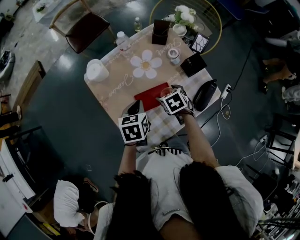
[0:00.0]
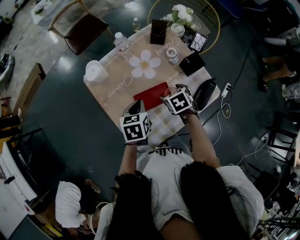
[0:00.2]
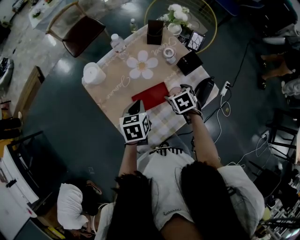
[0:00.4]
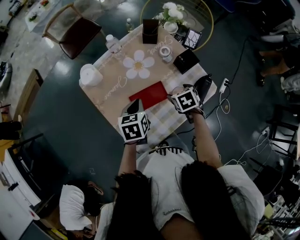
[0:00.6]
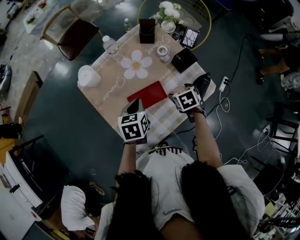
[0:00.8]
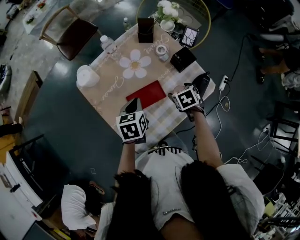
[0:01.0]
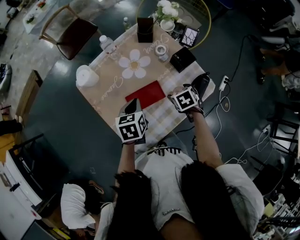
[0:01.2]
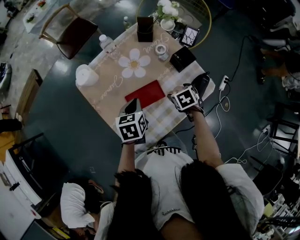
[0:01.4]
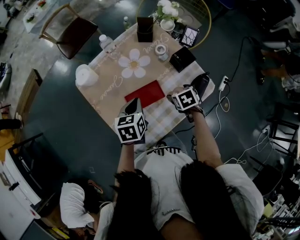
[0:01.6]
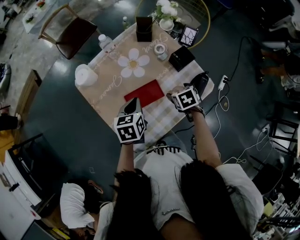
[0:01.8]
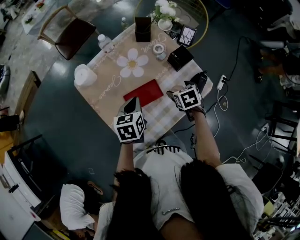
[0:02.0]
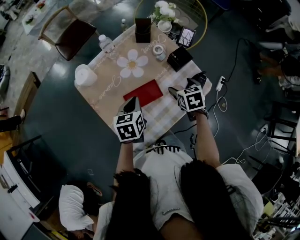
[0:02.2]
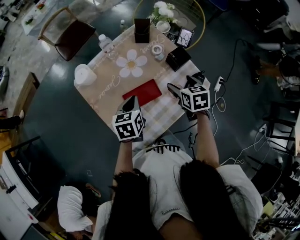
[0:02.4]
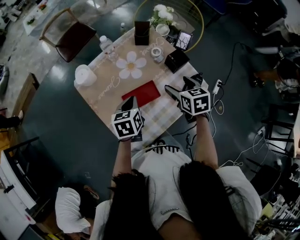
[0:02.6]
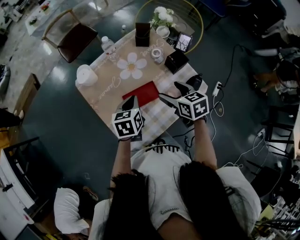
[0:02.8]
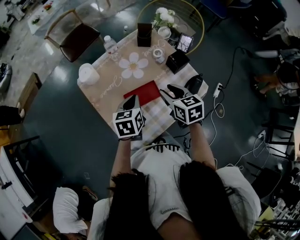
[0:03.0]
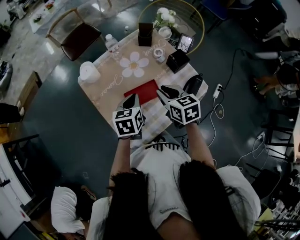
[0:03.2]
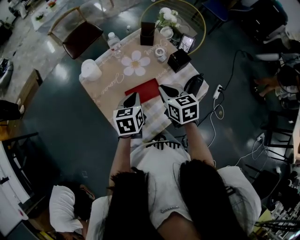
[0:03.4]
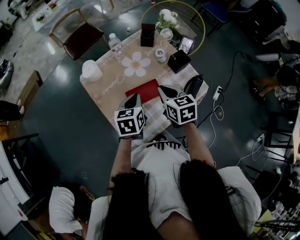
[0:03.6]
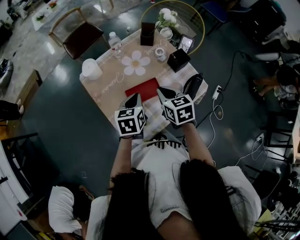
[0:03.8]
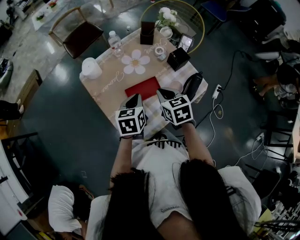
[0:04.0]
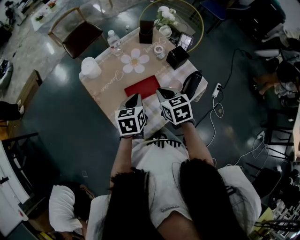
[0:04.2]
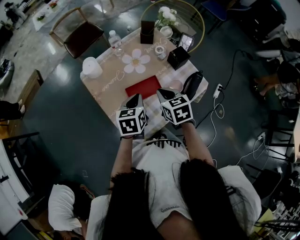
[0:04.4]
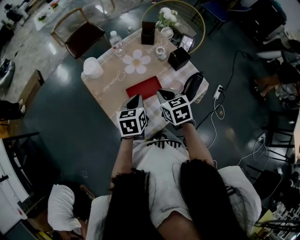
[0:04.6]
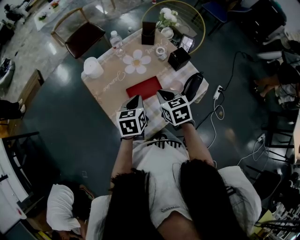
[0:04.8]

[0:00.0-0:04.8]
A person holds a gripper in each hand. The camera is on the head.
0:00.0 to 0:01.6: The right gripper heads to the right, covering roughly 10 cm.
0:01.6 to 0:03.2: The right gripper goes some 20 cm upward and to the left, points its fingers roughly 30 degrees further upward, and closes up.
0:03.2 to 0:04.8: The grippers move only a little.

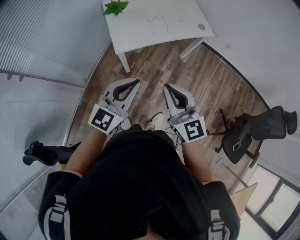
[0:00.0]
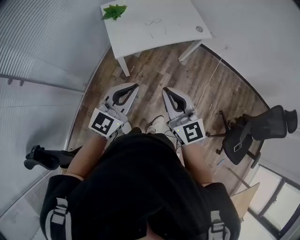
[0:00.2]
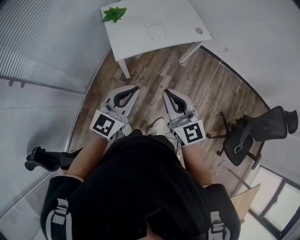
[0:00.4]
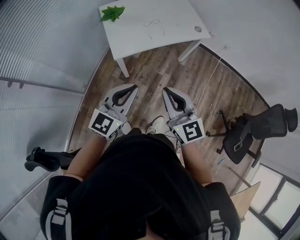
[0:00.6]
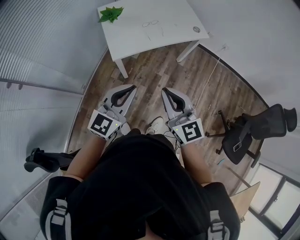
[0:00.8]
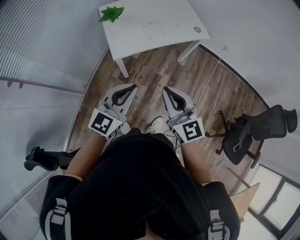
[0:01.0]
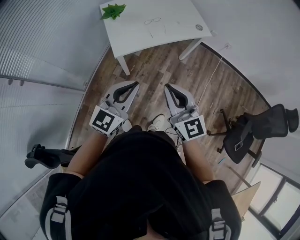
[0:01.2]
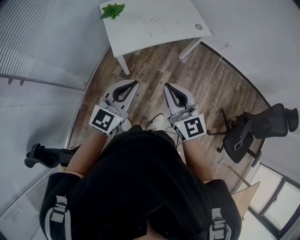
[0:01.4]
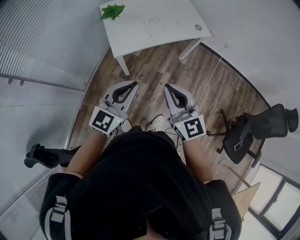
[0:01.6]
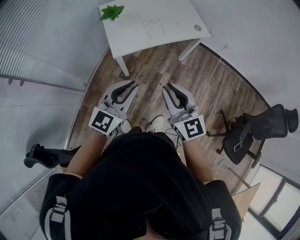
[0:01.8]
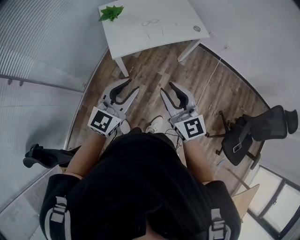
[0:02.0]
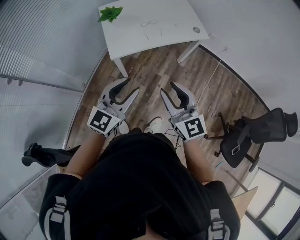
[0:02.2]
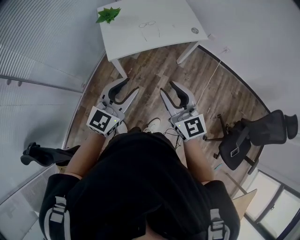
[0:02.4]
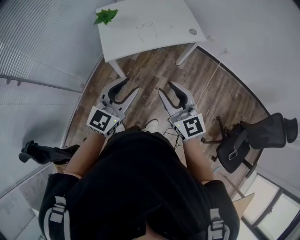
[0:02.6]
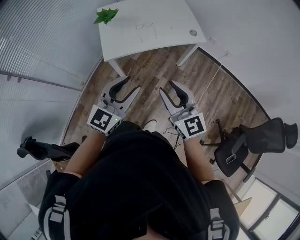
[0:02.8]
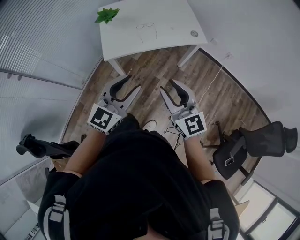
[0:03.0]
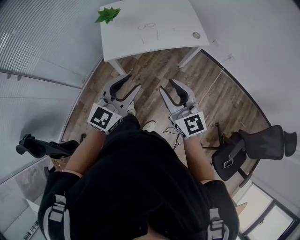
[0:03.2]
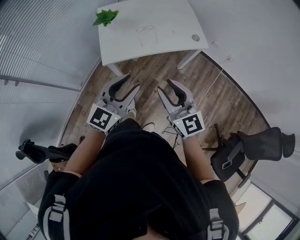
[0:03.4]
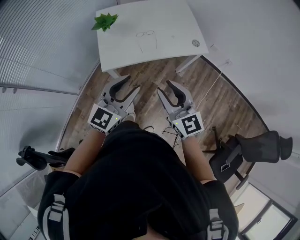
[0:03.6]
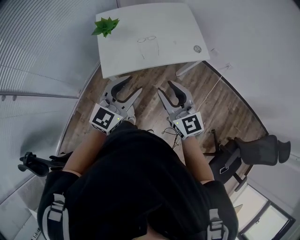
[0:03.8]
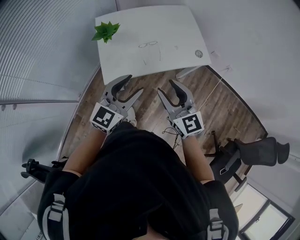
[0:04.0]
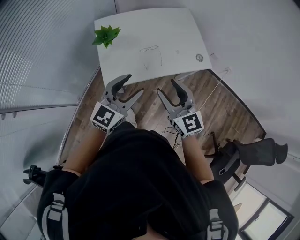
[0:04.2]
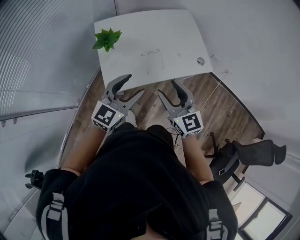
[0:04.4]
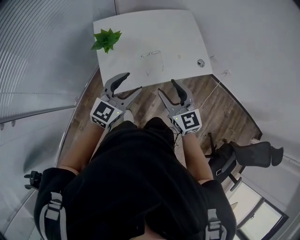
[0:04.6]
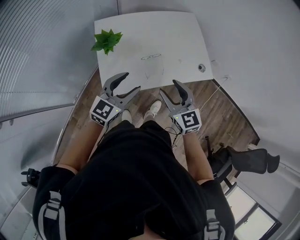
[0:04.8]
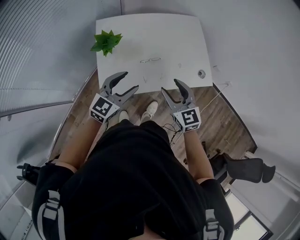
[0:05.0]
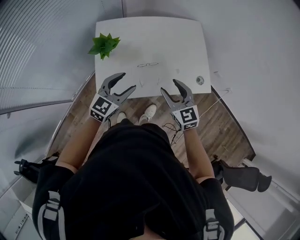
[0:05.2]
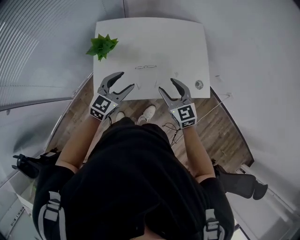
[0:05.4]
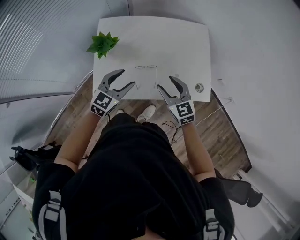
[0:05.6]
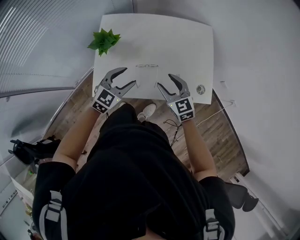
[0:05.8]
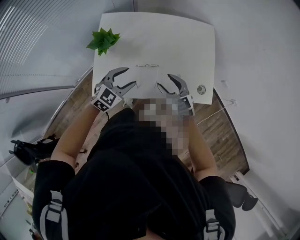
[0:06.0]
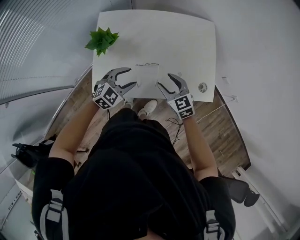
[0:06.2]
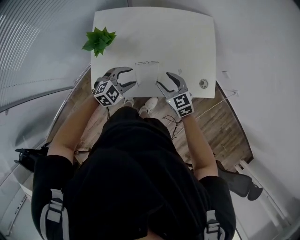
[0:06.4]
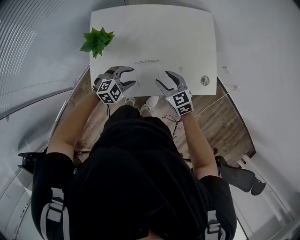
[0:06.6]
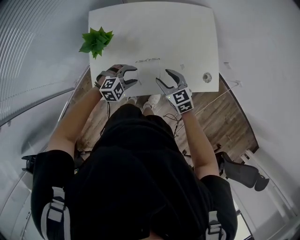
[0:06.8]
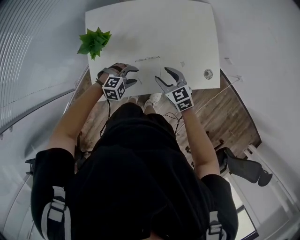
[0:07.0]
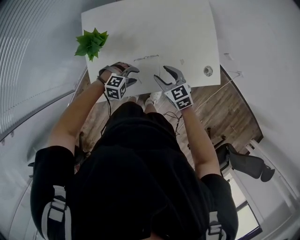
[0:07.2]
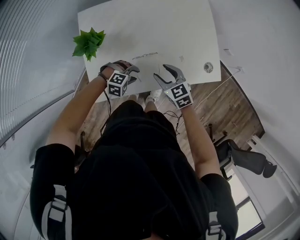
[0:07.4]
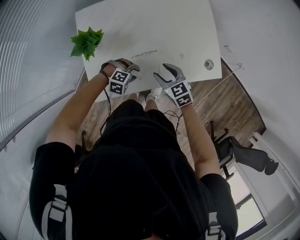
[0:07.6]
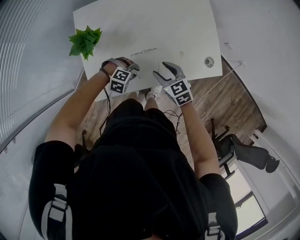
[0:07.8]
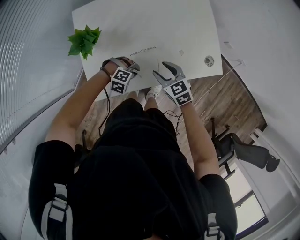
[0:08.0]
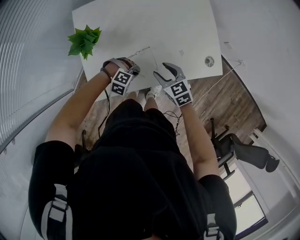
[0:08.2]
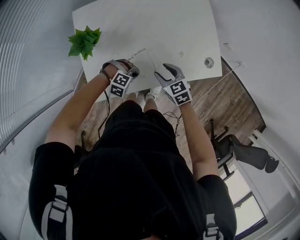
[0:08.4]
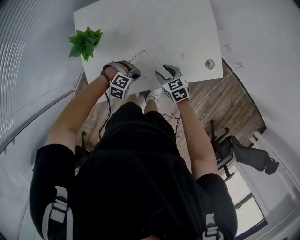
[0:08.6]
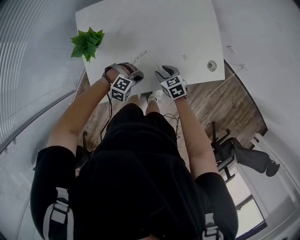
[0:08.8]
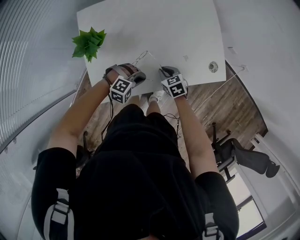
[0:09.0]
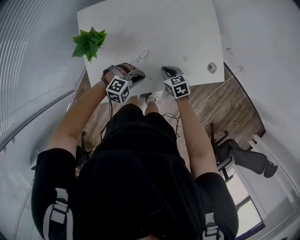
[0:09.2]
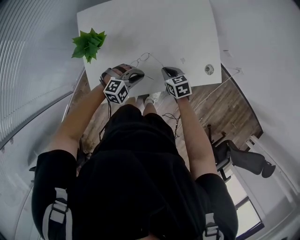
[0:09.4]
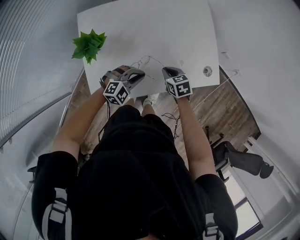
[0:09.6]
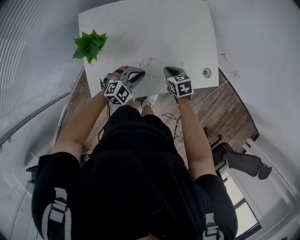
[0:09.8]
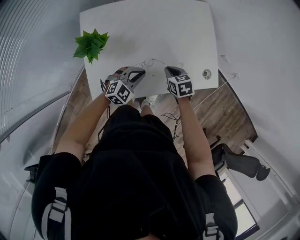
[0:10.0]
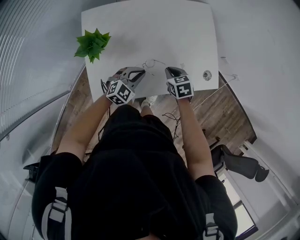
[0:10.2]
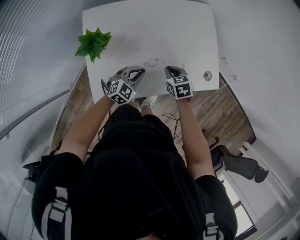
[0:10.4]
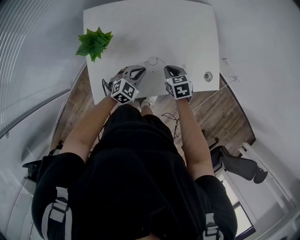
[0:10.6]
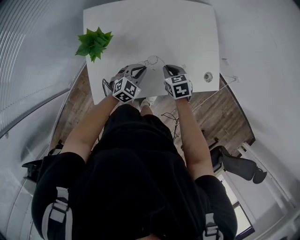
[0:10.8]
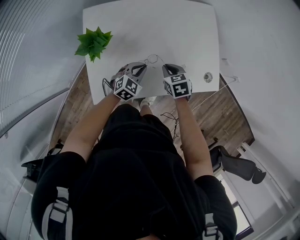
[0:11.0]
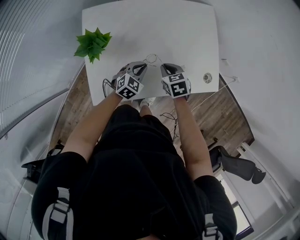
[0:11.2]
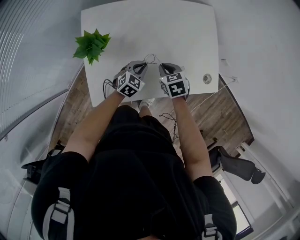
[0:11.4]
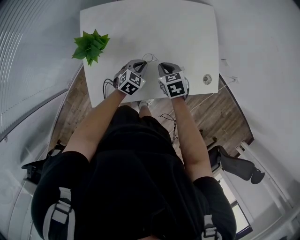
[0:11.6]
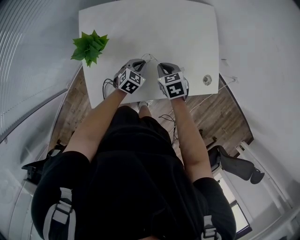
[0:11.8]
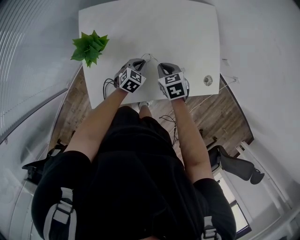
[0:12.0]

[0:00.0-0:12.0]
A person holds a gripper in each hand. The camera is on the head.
0:00.0 to 0:01.6: The grippers make only small movements.
0:01.6 to 0:03.0: The right gripper goes approximately 15 cm to the right and forward, and opens its fingers; the left gripper shifts about 10 cm to the right, and opens.
0:03.0 to 0:04.4: The two grippers go about 25 cm forward. The right gripper opens. The left gripper opens its fingers.
0:04.4 to 0:06.0: The grippers both shift forward and downward by about 25 cm. The left gripper turns by roughly 30 degrees. The right gripper turns by roughly 30 degrees.
0:06.0 to 0:07.6: The right gripper goes roughly 10 cm downward; the left gripper travels downward by about 20 cm, points its fingers approximately 30 degrees further downward, and closes its fingers.
0:07.6 to 0:09.0: The right gripper heads downward, covering about 10 cm, and closes, while the left gripper closes up.
0:09.0 to 0:10.4: The right gripper moves upward, about 10 cm, while the left gripper moves approximately 10 cm, and rolls counterclockwise, seen from behind, by some 40 degrees.
0:10.4 to 0:12.0: The left gripper is displaced downward and forward by about 10 cm, and turns by approximately 20 degrees, while the right gripper changes place by about 5 cm.

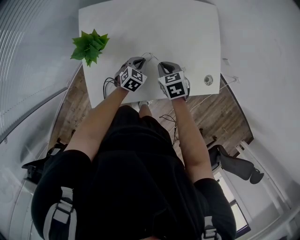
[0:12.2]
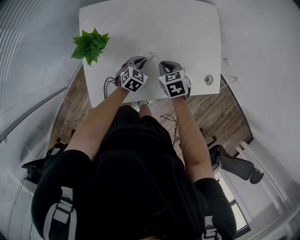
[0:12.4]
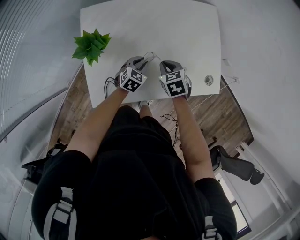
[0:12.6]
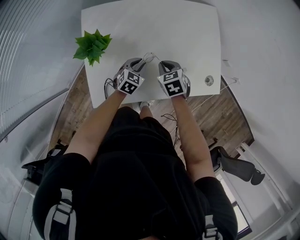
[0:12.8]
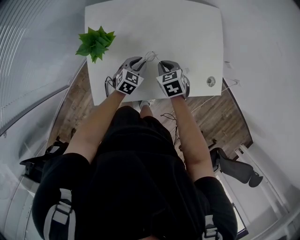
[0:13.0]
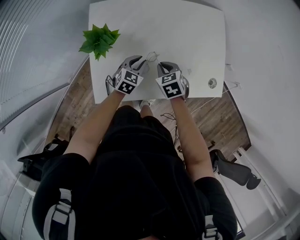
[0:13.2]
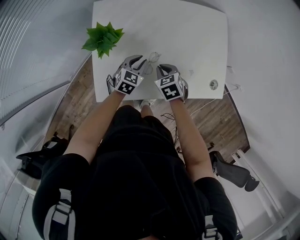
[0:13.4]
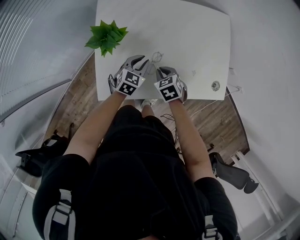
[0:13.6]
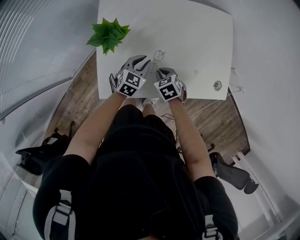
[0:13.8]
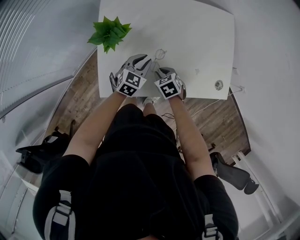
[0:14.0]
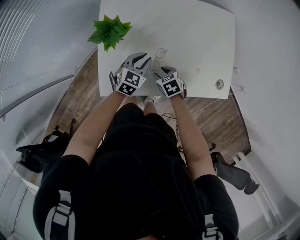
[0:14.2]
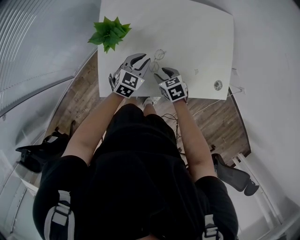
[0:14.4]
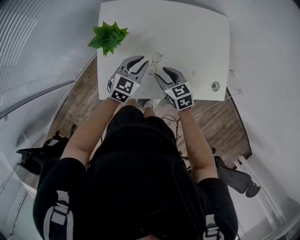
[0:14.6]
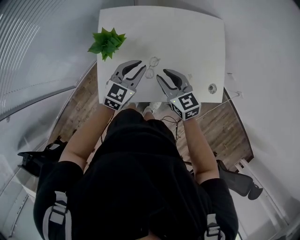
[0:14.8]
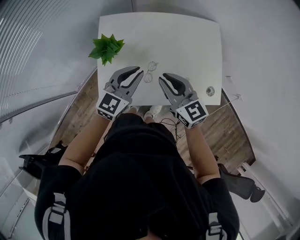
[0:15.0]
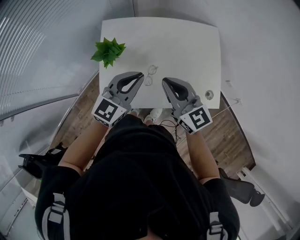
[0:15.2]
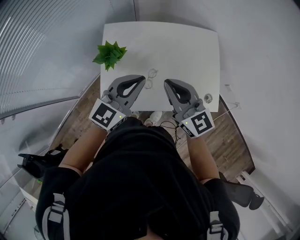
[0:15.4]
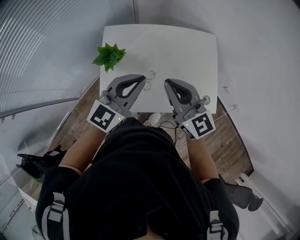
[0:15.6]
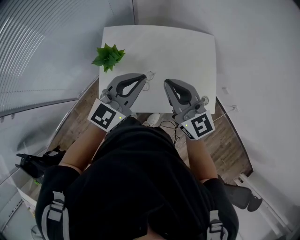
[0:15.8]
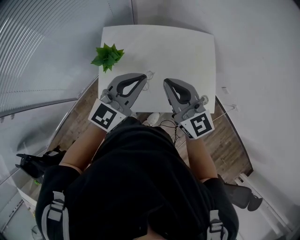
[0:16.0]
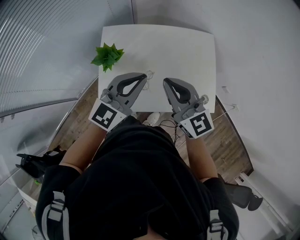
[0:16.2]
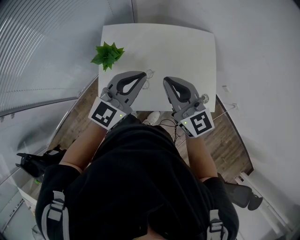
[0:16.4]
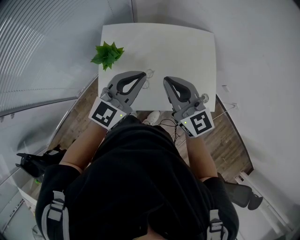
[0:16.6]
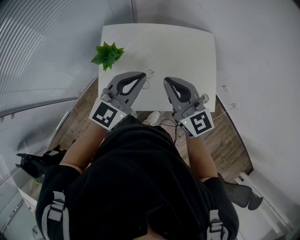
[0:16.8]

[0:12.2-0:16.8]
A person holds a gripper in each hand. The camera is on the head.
0:12.2 to 0:13.8: The right gripper travels to the left, backward and downward by roughly 10 cm, while the left gripper is displaced to the left and upward by about 10 cm.
0:13.8 to 0:15.2: Both grippers travel together upward, roughly 30 cm. The left gripper swivels some 30 degrees. The right gripper angles its fingers upward, by some 60 degrees, and opens, then closes once more.
0:15.2 to 0:16.8: The grippers both shift upward by roughly 5 cm.

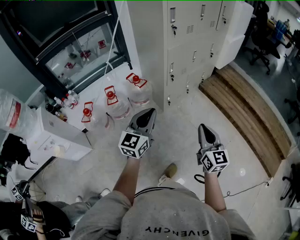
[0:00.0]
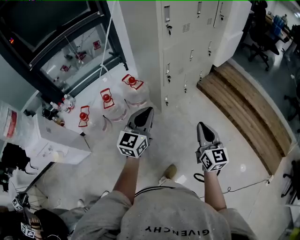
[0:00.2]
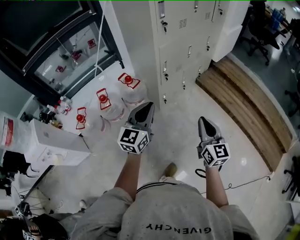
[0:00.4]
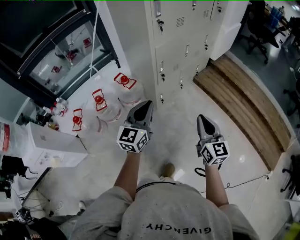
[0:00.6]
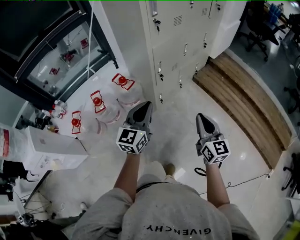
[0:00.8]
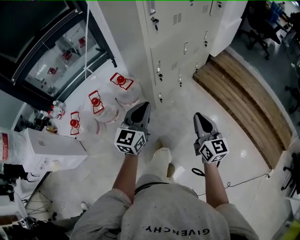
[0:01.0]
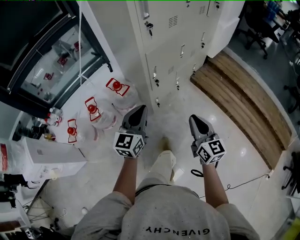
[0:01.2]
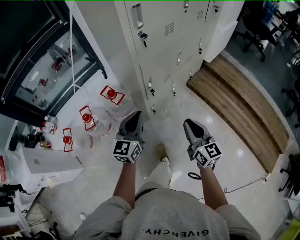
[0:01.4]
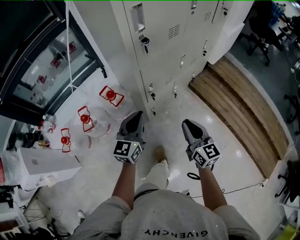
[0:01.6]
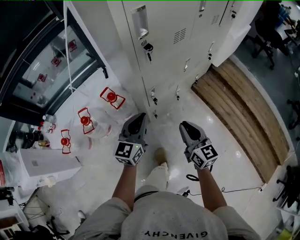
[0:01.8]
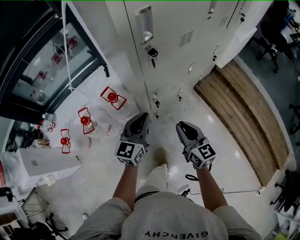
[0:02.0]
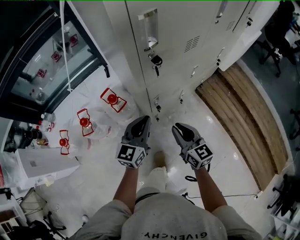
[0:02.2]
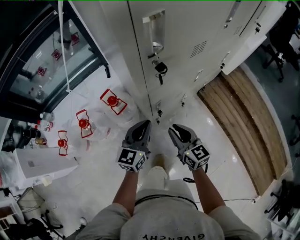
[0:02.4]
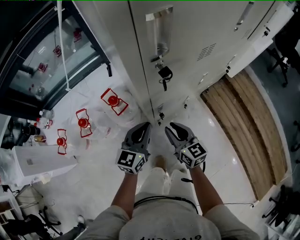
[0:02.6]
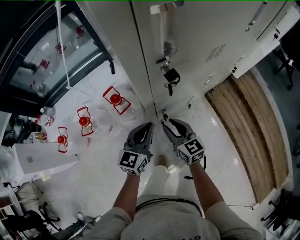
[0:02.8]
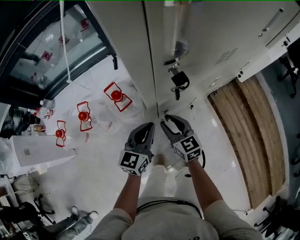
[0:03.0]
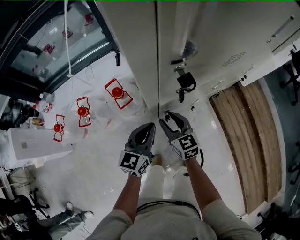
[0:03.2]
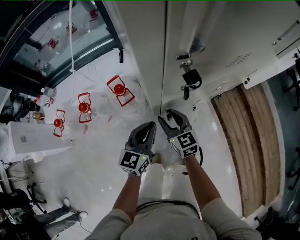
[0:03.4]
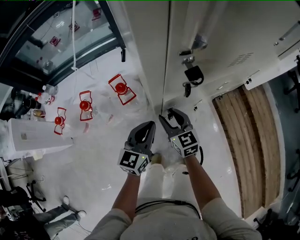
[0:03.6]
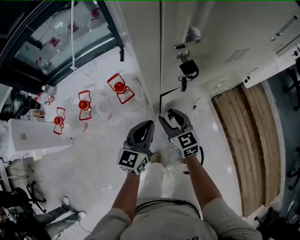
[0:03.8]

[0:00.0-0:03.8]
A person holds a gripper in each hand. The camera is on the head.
0:00.0 to 0:01.2: Both grippers move forward, approximately 25 cm.
0:01.2 to 0:02.6: The grippers both shift forward and downward by roughly 30 cm. The right gripper turns by approximately 30 degrees.
0:02.6 to 0:03.8: The right gripper is displaced forward and downward by approximately 10 cm.
